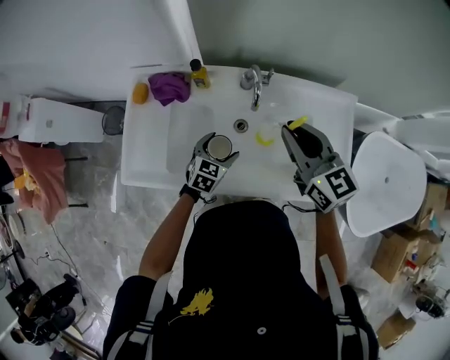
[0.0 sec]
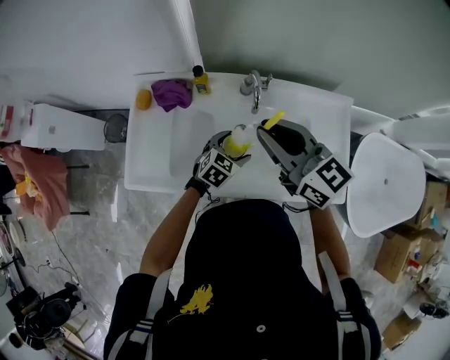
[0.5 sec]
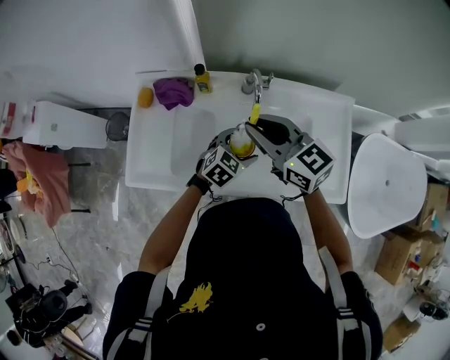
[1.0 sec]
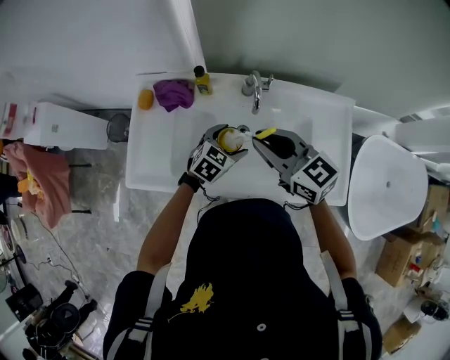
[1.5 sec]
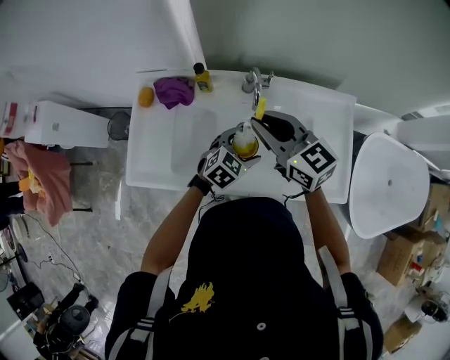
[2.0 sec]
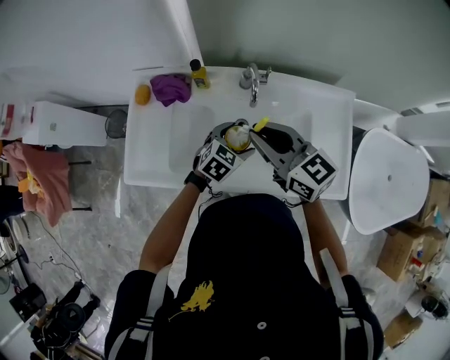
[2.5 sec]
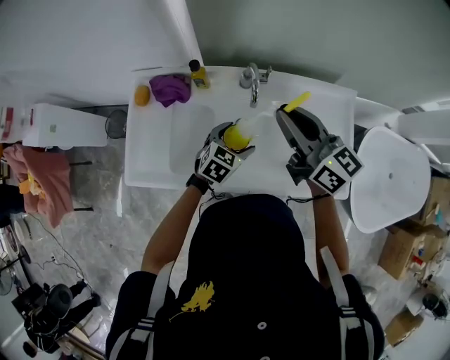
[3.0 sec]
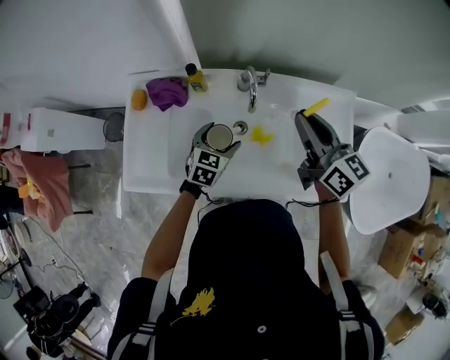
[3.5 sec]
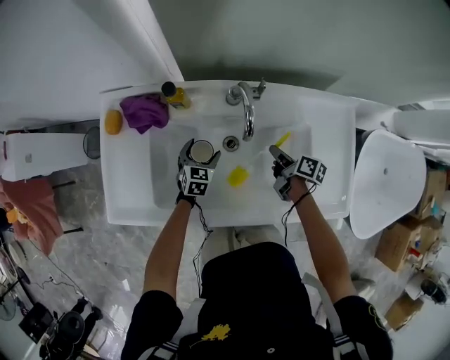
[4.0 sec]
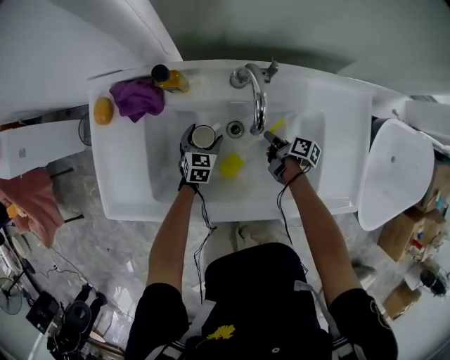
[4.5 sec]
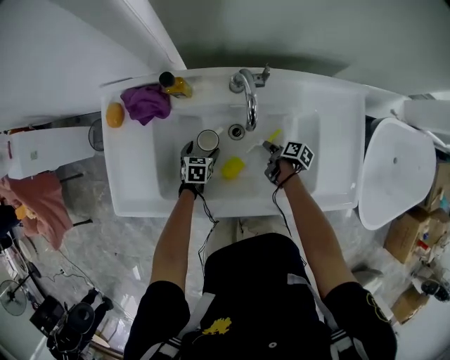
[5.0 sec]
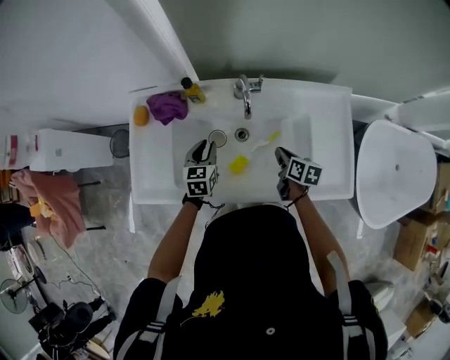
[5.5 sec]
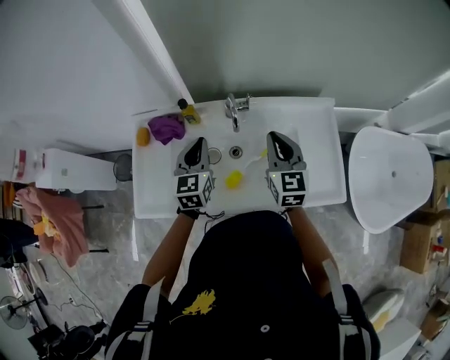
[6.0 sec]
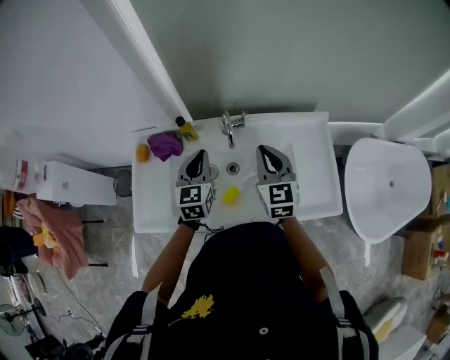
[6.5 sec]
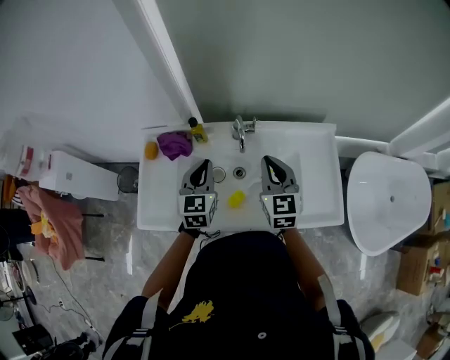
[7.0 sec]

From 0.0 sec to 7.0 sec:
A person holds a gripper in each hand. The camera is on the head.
From 0.0 sec to 2.0 sec: The left gripper is displaced to the right and upward by approximately 10 cm. Meanwhile the right gripper is displaced to the left by roughly 5 cm.
From 2.0 sec to 3.5 sec: The left gripper heads to the left, covering some 5 cm, and swivels about 20 degrees. Meanwhile the right gripper shifts about 10 cm to the right, and swivels roughly 20 degrees.
From 3.5 sec to 5.0 sec: The right gripper goes some 50 cm downward, tilts its fingers roughly 50 degrees downward, and opens up. Meanwhile the left gripper is displaced downward by roughly 25 cm, and rotates some 20 degrees.
From 5.0 sec to 7.0 sec: Both grippers move upward, roughly 50 cm. The right gripper rolls counterclockwise, seen from behind, by about 80 degrees, and closes. The left gripper tips its fingers upward by some 40 degrees, and closes up.

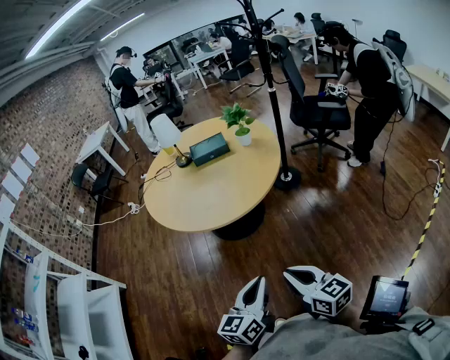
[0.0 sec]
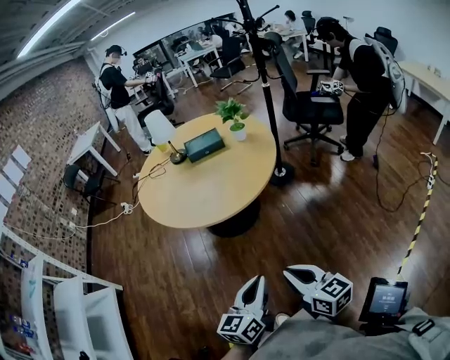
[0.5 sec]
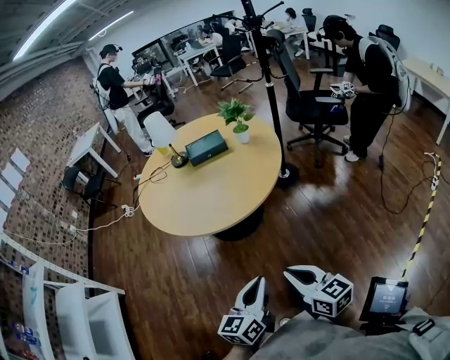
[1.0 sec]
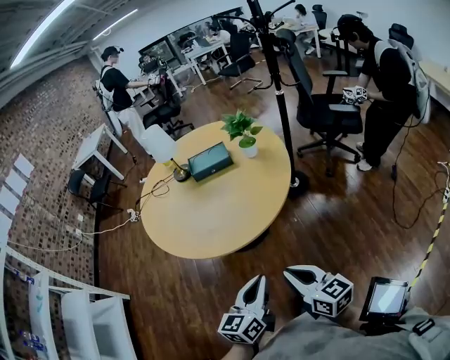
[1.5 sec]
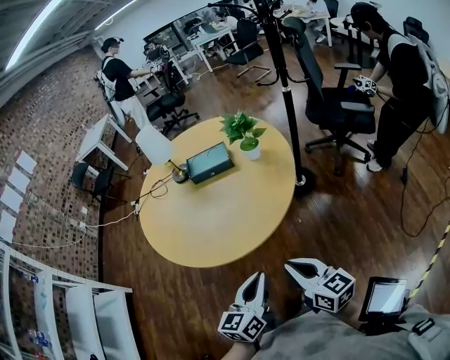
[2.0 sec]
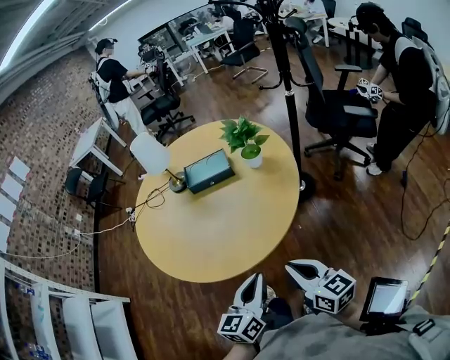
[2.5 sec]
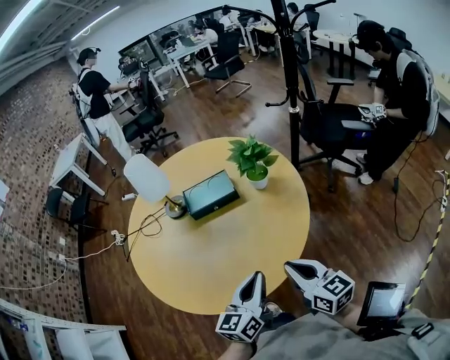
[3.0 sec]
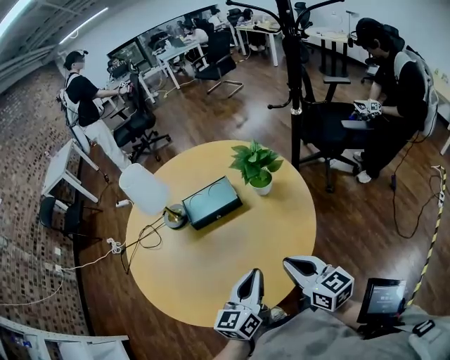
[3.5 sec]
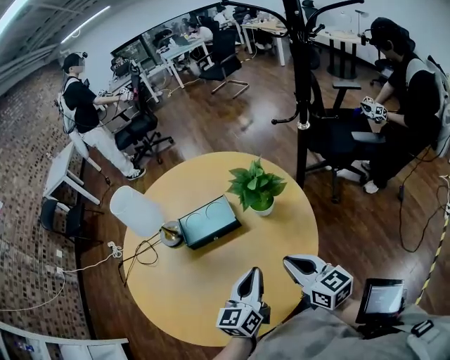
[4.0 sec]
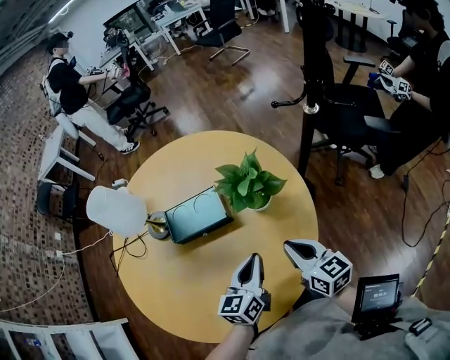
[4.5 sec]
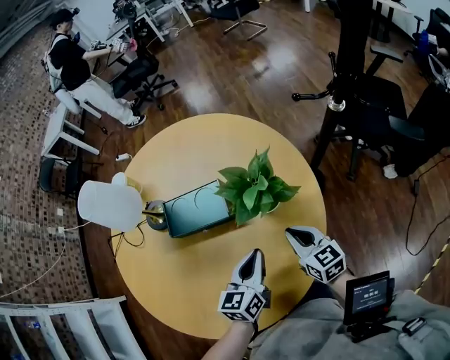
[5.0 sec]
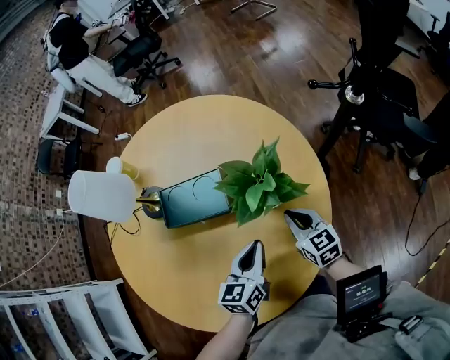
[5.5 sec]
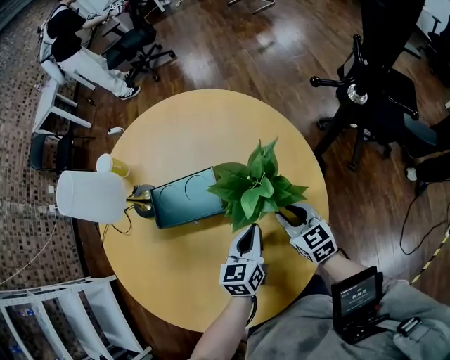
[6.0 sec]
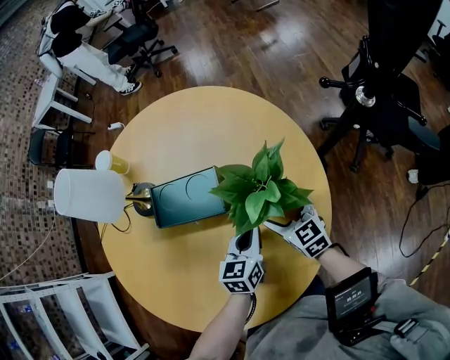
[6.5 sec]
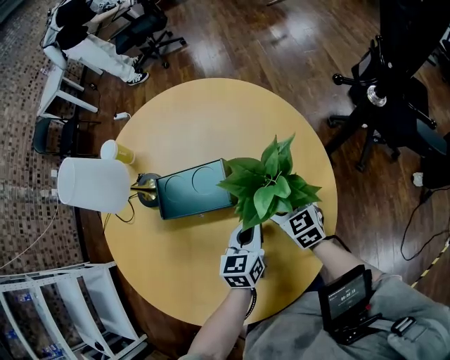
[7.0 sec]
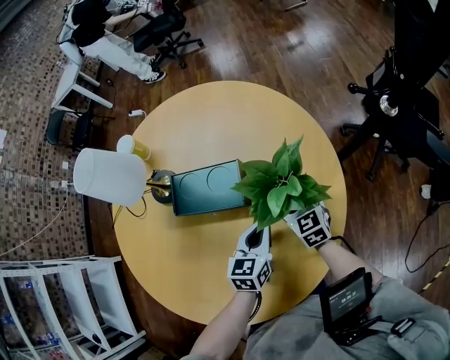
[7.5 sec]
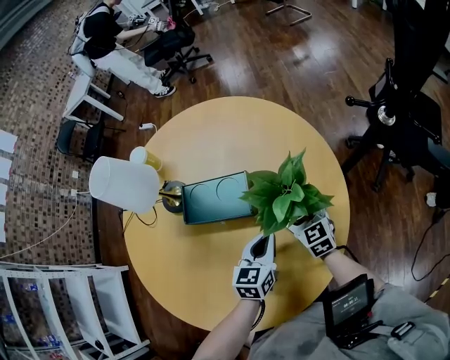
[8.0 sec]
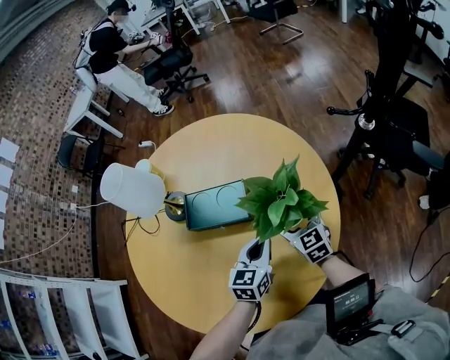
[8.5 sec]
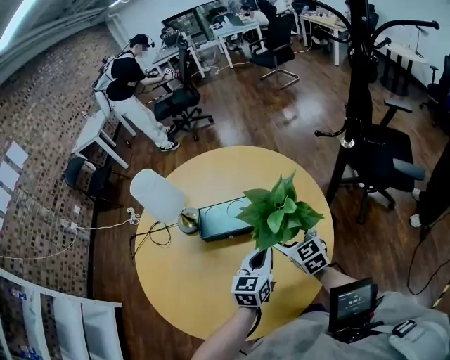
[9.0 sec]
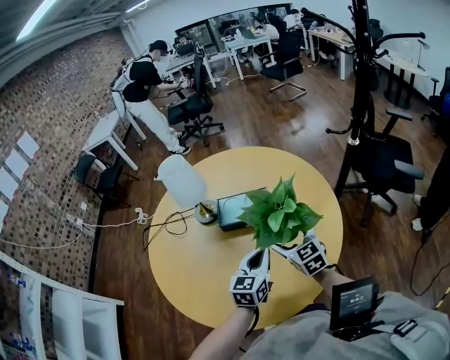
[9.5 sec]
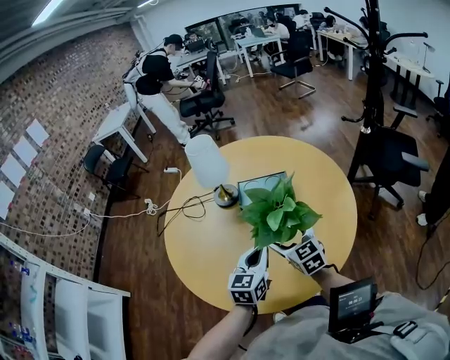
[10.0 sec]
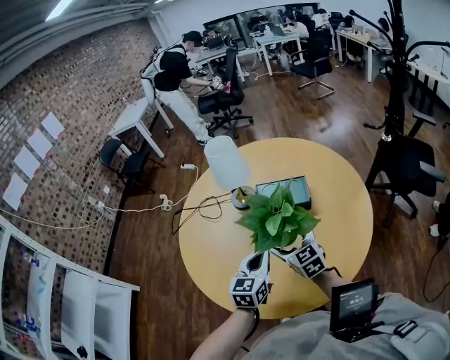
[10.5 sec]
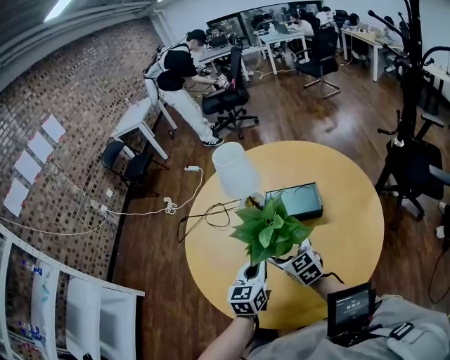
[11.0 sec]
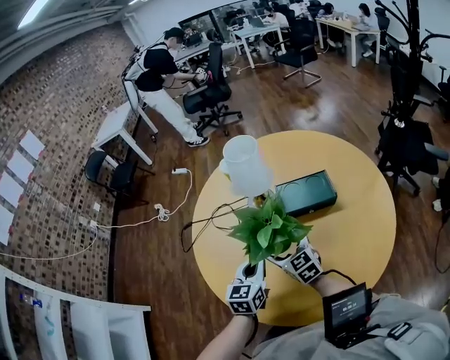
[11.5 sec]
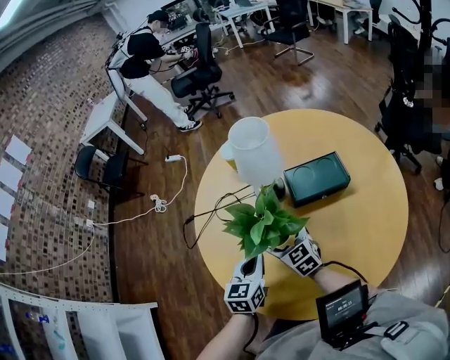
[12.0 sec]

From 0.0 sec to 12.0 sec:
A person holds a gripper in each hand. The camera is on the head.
From 0.0 sec to 2.0 sec: The grippers both shift forward by about 25 cm.
From 2.0 sec to 4.0 sec: Both grippers travel together forward, roughly 35 cm.
From 4.0 sec to 6.0 sec: The right gripper heads forward and downward, covering approximately 30 cm, and changes its angle by some 20 degrees. The left gripper heads forward, downward and to the right, covering roughly 25 cm, and rotates about 20 degrees.
From 6.0 sec to 8.0 sec: The right gripper travels forward by roughly 5 cm, and opens its fingers.
From 8.0 sec to 10.0 sec: The two grippers go approximately 30 cm backward, to the left and upward.
From 10.0 sec to 12.0 sec: Both grippers move to the left and forward, approximately 30 cm.

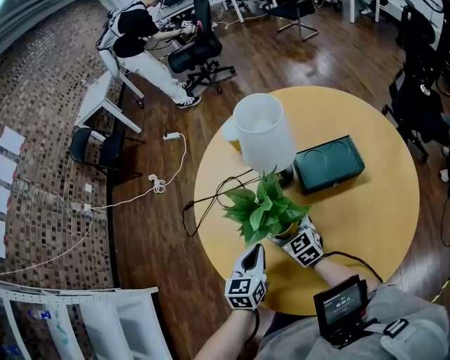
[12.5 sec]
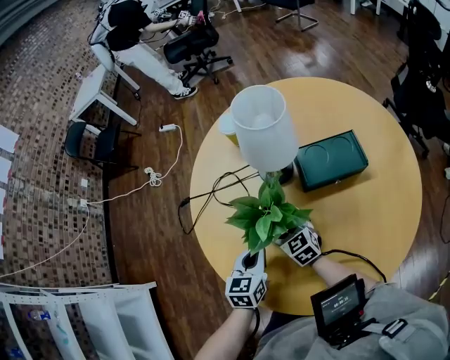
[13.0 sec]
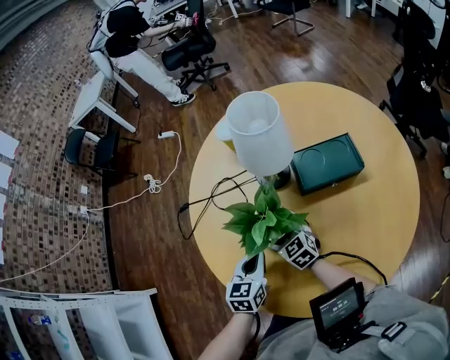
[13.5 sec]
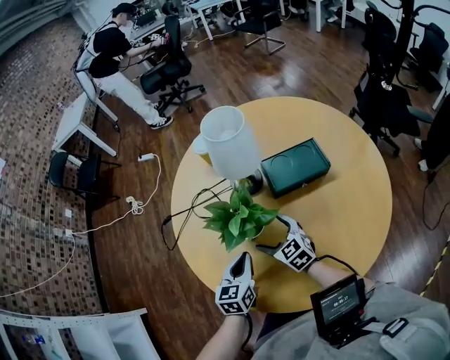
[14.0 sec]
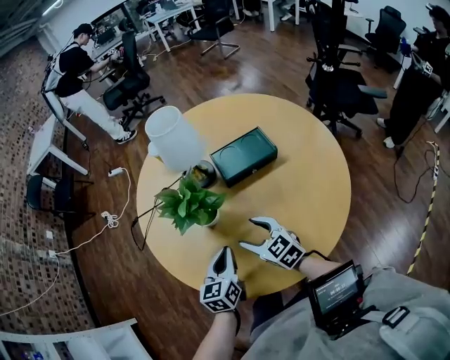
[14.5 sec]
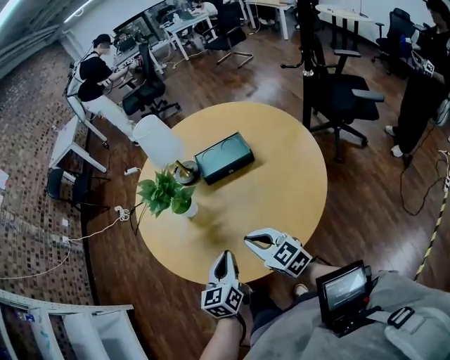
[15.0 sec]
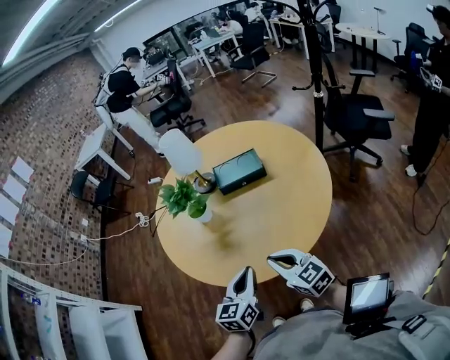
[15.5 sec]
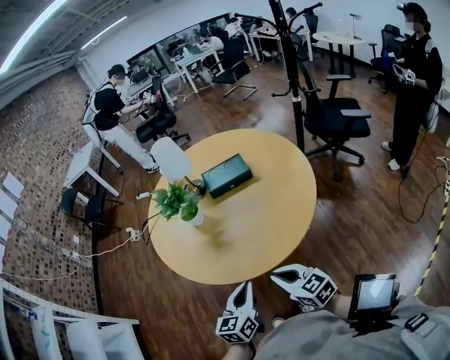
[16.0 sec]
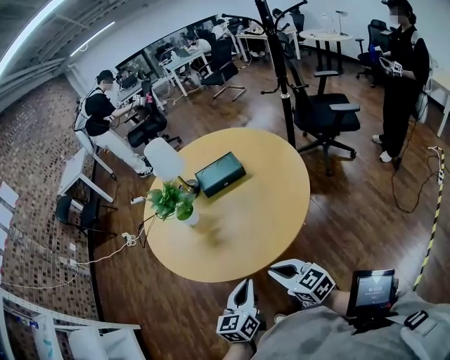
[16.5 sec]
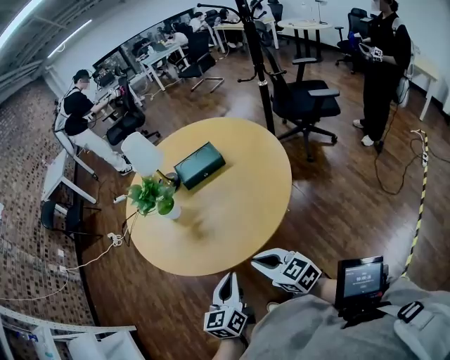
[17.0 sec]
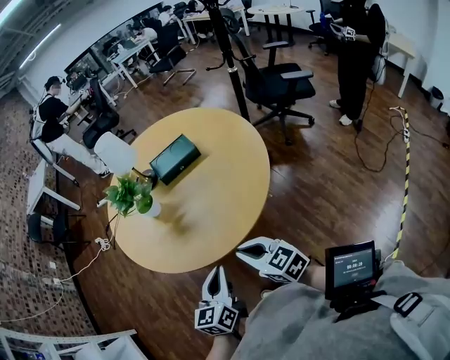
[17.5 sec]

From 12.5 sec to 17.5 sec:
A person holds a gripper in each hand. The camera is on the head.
From 12.5 sec to 15.0 sec: The left gripper shifts about 25 cm backward and to the right. Meanwhile the right gripper goes approximately 30 cm backward, to the right and upward, and closes up.
From 15.0 sec to 17.5 sec: Both grippers move backward, about 20 cm.

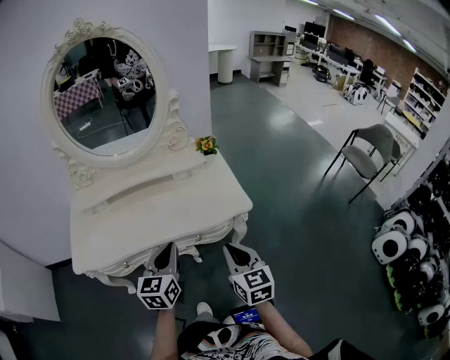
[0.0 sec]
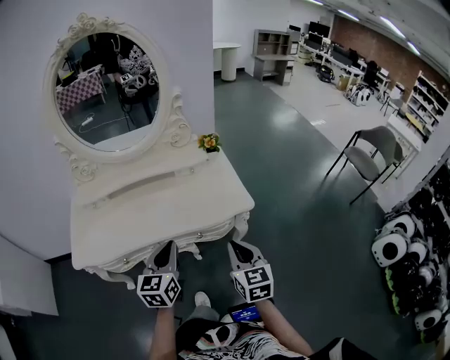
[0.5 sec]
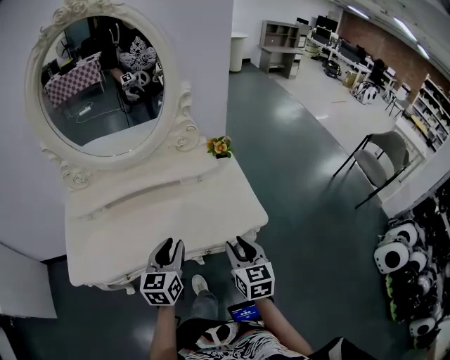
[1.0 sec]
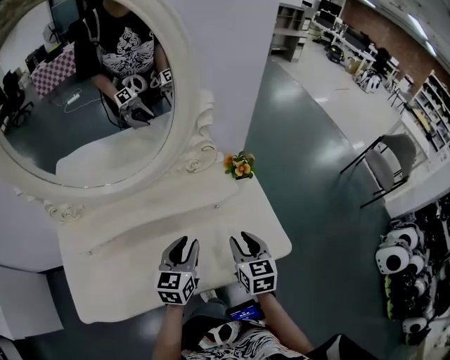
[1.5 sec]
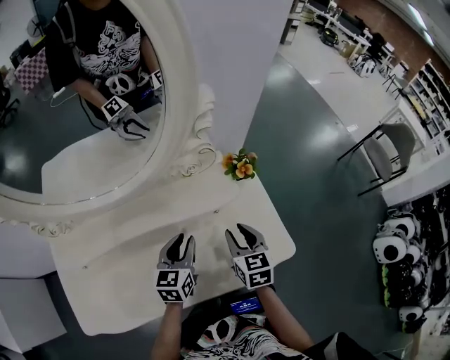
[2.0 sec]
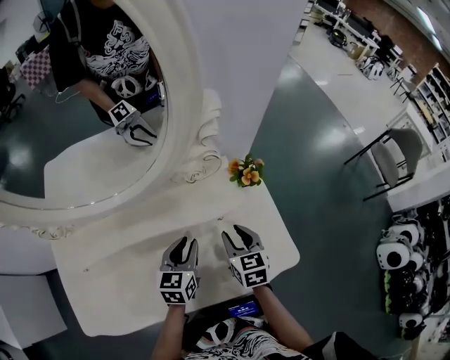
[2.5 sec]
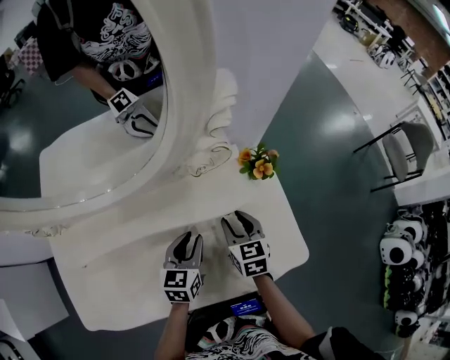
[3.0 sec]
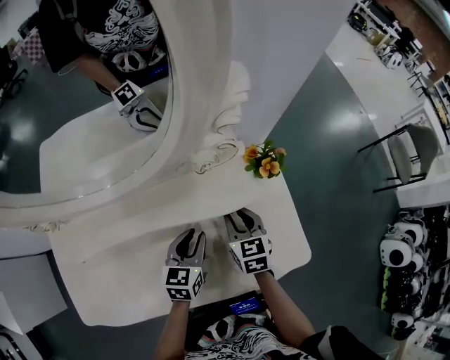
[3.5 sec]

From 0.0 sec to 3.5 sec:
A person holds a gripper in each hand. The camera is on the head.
From 0.0 sec to 2.0 sec: The right gripper moves forward, some 35 cm, and opens up. The left gripper moves forward and downward, some 40 cm, and opens.
From 2.0 sec to 3.5 sec: The left gripper goes approximately 5 cm downward. The right gripper goes roughly 10 cm forward and downward.
